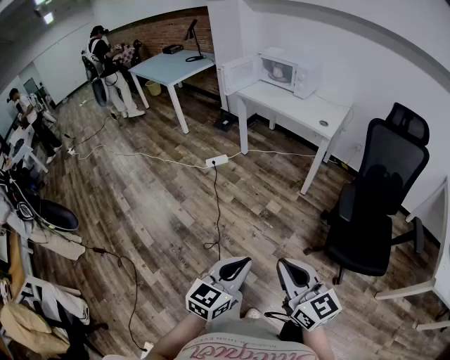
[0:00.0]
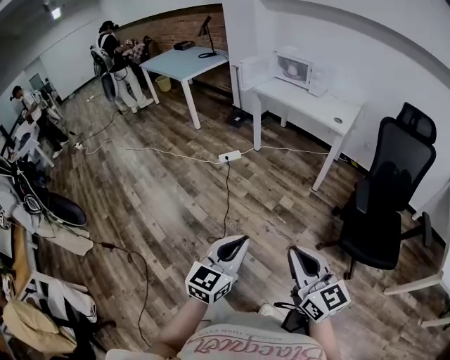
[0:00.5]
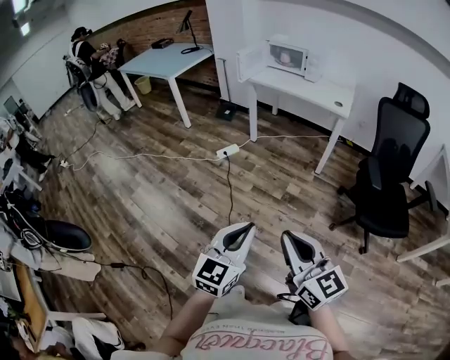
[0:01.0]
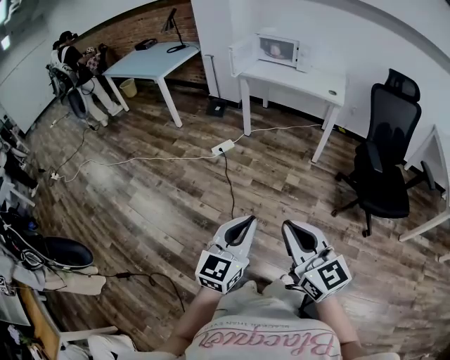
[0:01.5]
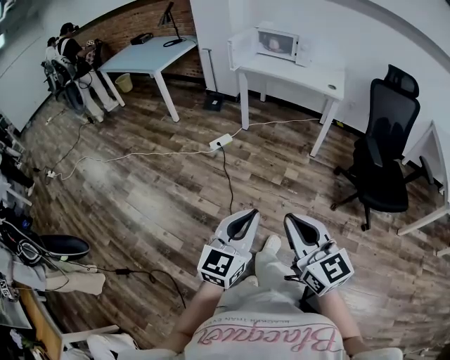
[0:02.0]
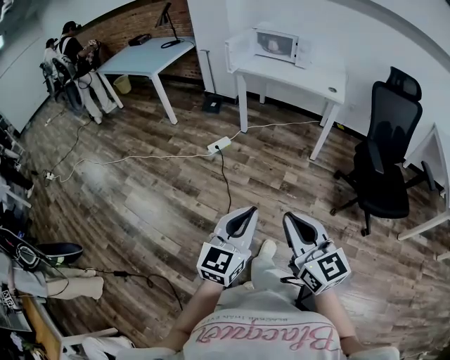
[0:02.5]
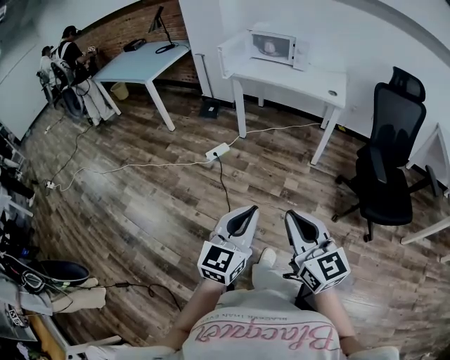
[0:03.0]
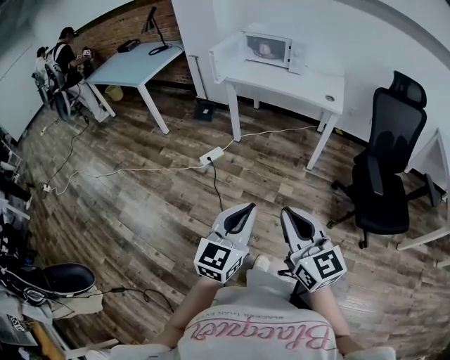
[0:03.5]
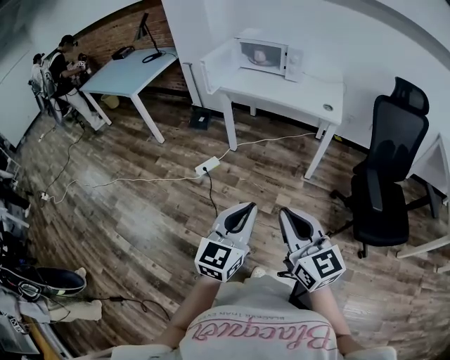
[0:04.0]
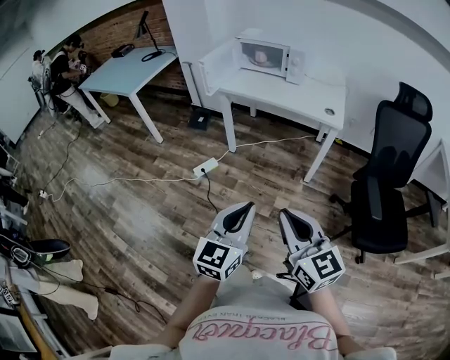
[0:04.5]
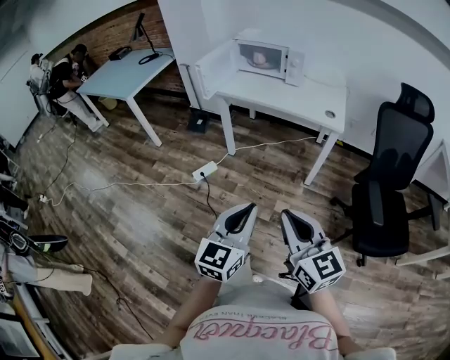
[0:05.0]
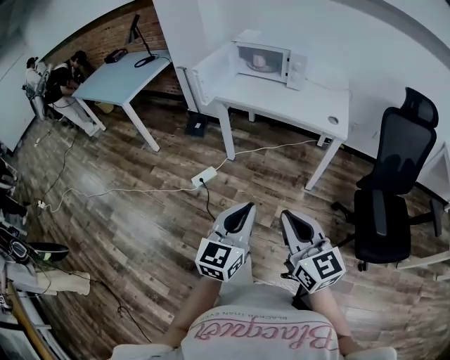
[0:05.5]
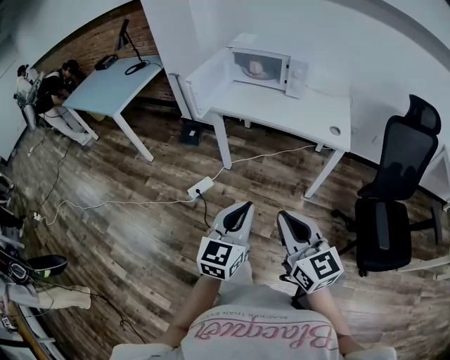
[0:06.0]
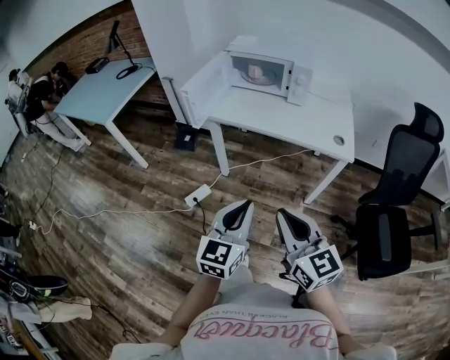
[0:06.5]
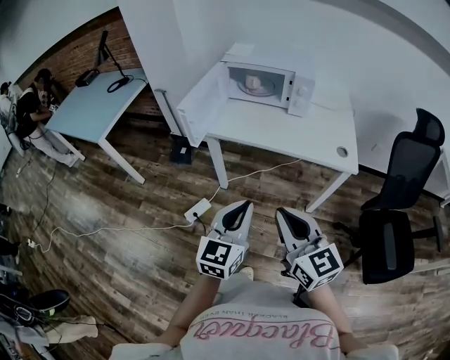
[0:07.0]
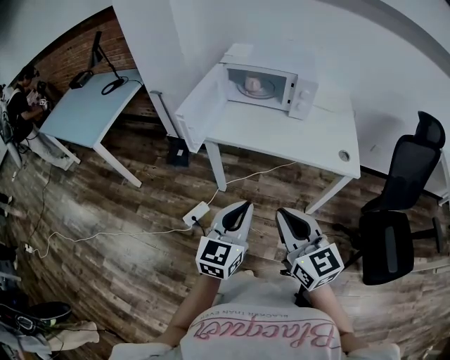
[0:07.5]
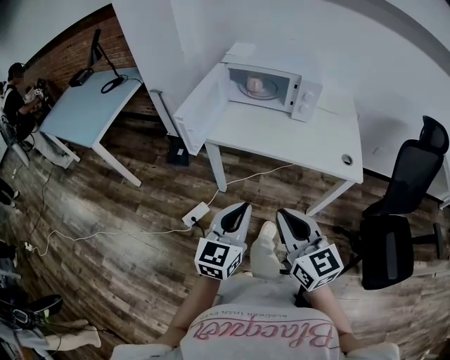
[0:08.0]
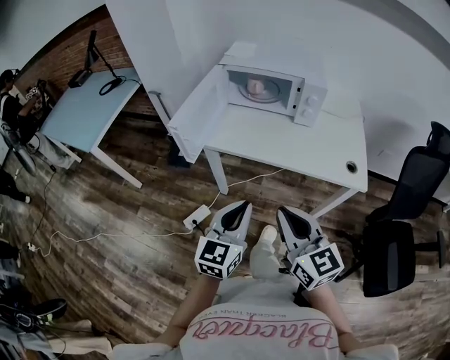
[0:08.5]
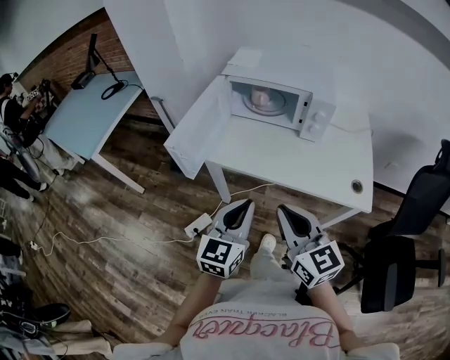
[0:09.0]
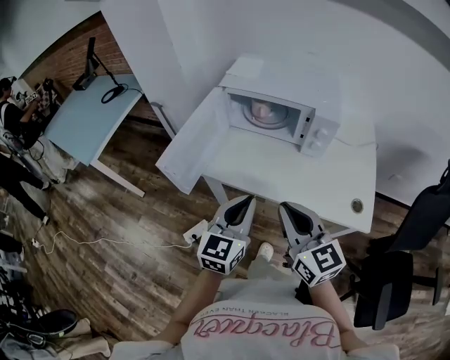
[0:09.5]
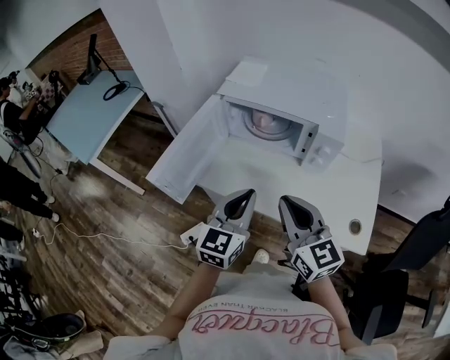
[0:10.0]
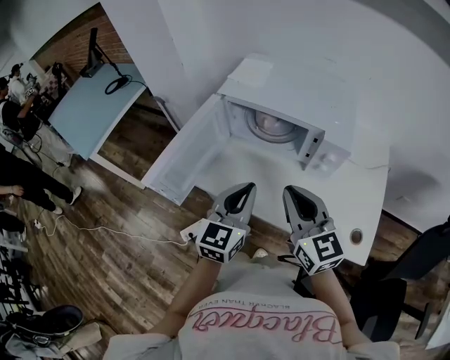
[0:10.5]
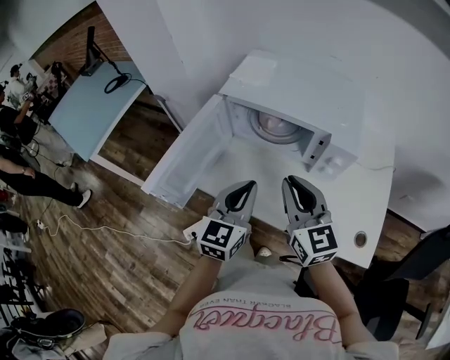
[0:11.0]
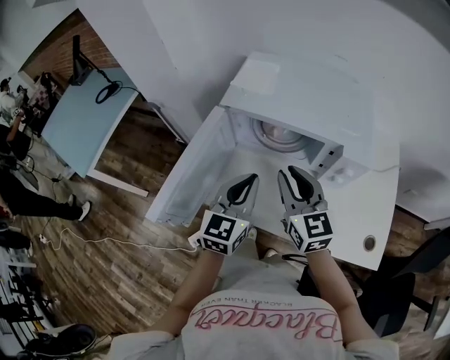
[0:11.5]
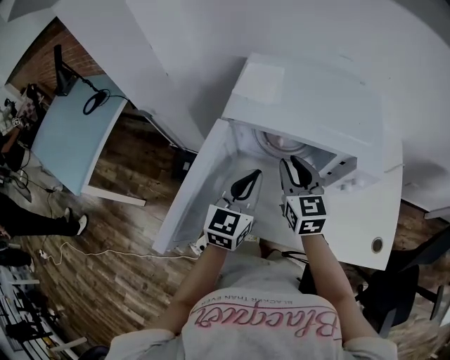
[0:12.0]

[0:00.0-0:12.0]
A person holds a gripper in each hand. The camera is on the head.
0:00.0 to 0:02.0: The two grippers go about 35 cm to the left.
0:02.0 to 0:04.0: The two grippers go about 30 cm forward.
0:04.0 to 0:06.0: The grippers both shift forward by some 20 cm.
0:06.0 to 0:08.0: Both grippers move forward, approximately 25 cm.
0:08.0 to 0:10.0: The grippers both shift forward by approximately 30 cm.
0:10.0 to 0:12.0: Both grippers travel together forward, approximately 25 cm. The right gripper changes its angle by some 20 degrees.

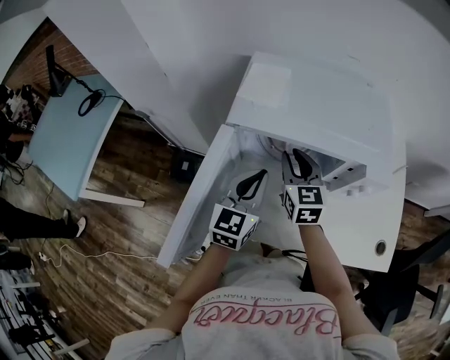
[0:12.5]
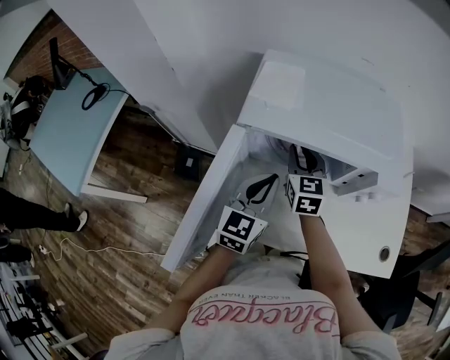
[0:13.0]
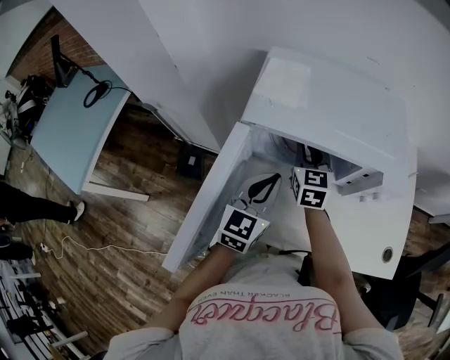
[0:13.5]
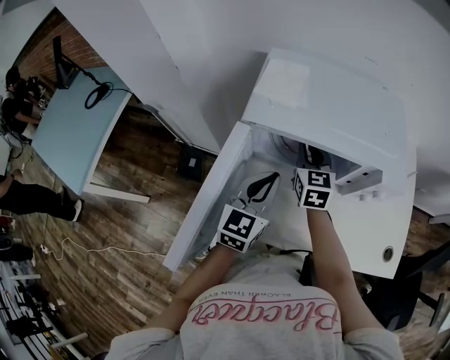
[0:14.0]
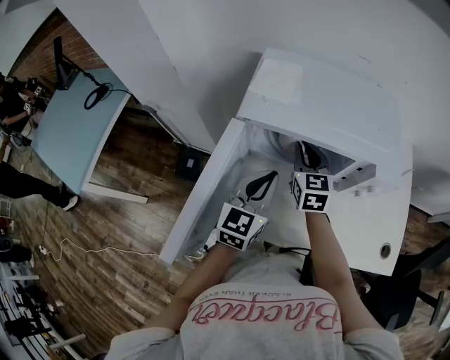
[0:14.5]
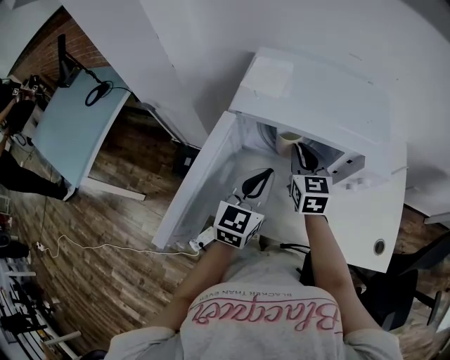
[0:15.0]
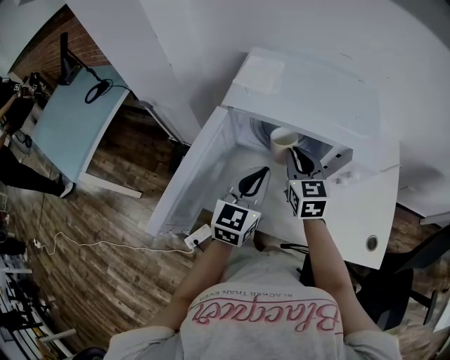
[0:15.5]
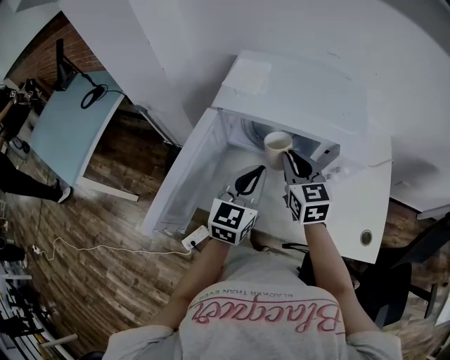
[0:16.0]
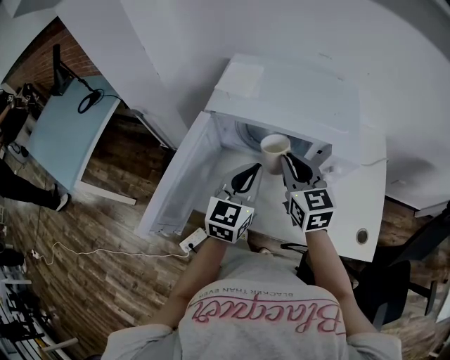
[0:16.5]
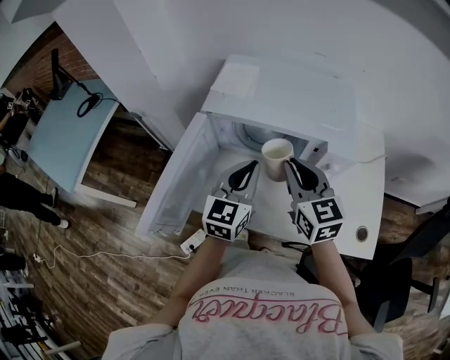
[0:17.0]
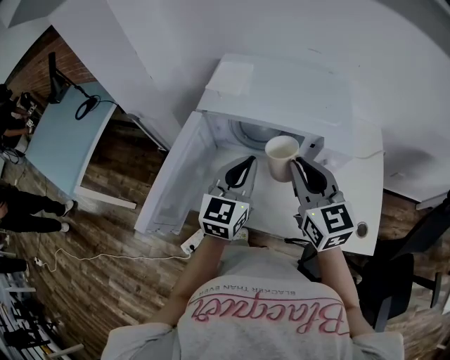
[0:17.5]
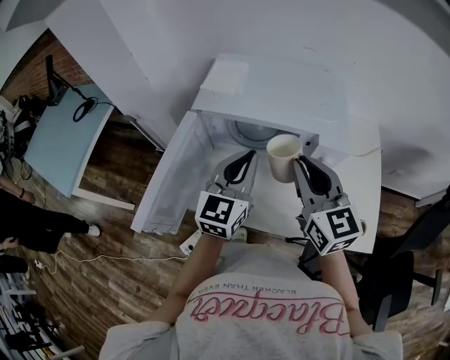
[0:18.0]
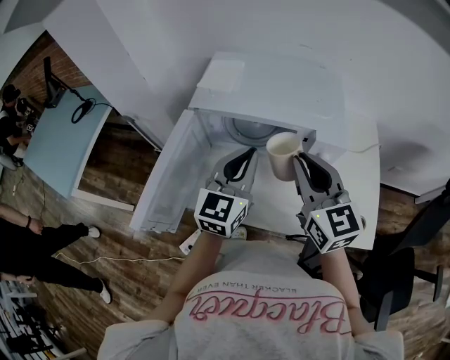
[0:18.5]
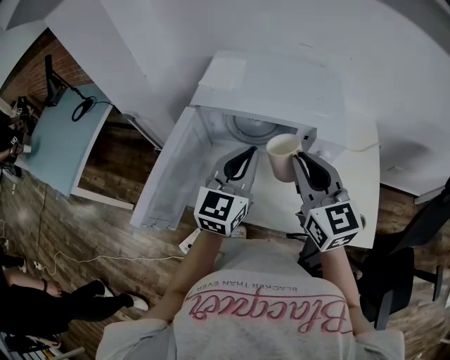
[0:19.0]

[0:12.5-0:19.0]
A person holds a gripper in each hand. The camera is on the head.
0:12.5 to 0:14.5: The grippers make only small movements.
0:14.5 to 0:17.0: The left gripper heads to the right and upward, covering about 10 cm. Meanwhile the right gripper travels backward, upward and to the right by approximately 20 cm.
0:17.0 to 0:19.0: The left gripper changes place by about 5 cm. The right gripper travels upward by roughly 5 cm.

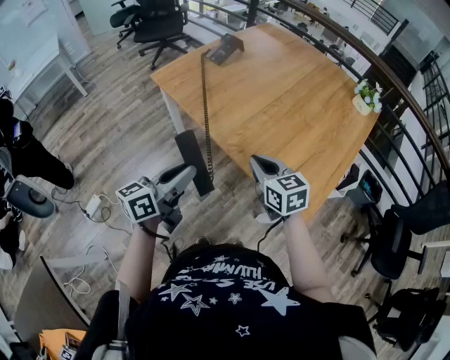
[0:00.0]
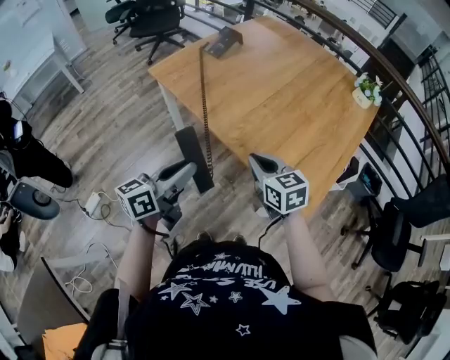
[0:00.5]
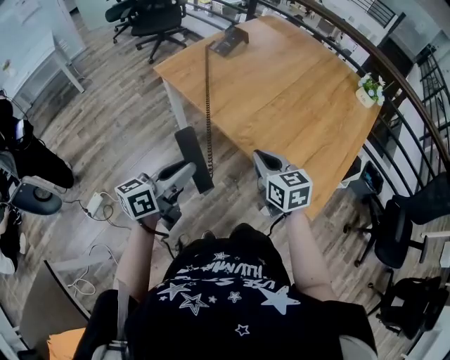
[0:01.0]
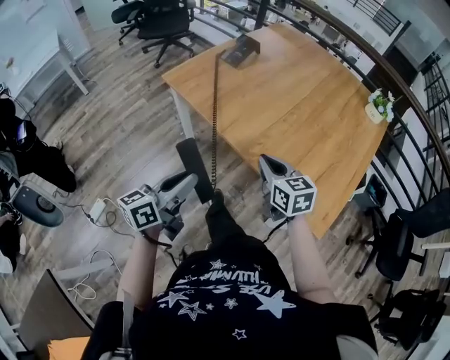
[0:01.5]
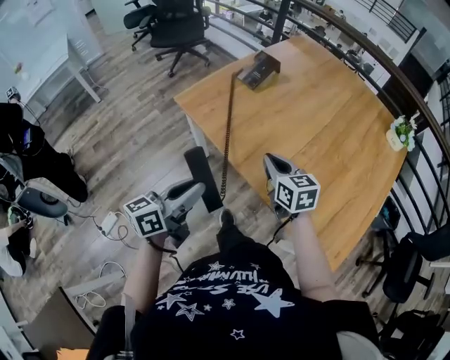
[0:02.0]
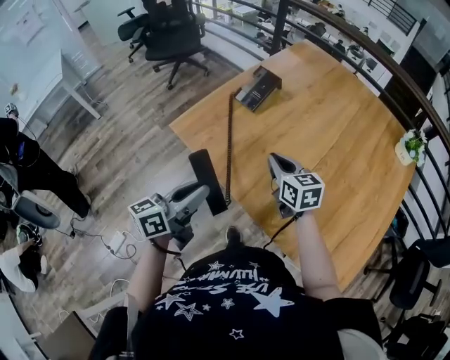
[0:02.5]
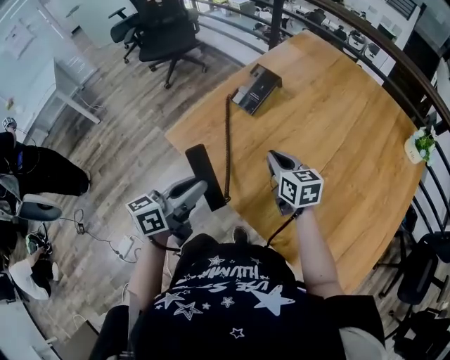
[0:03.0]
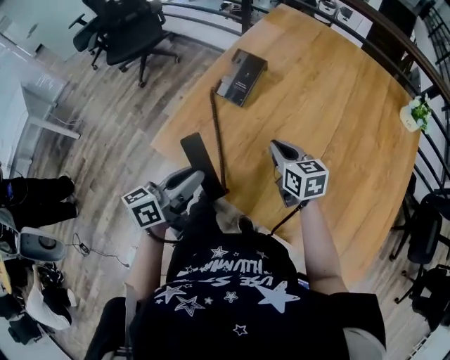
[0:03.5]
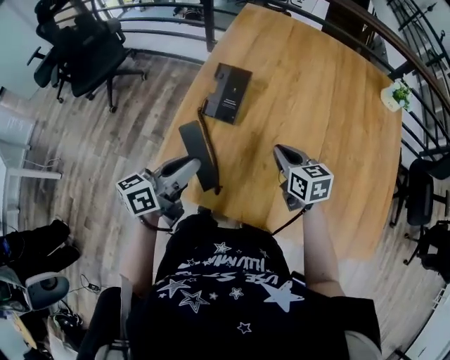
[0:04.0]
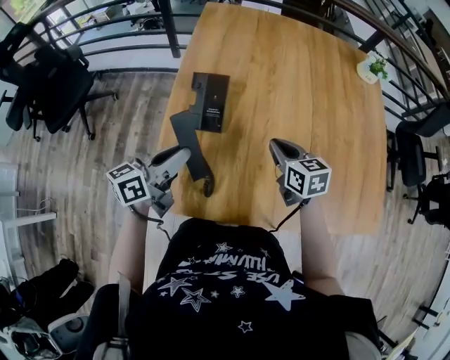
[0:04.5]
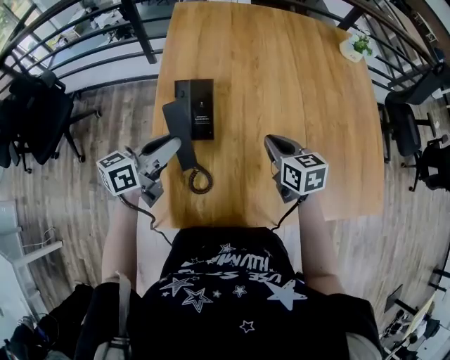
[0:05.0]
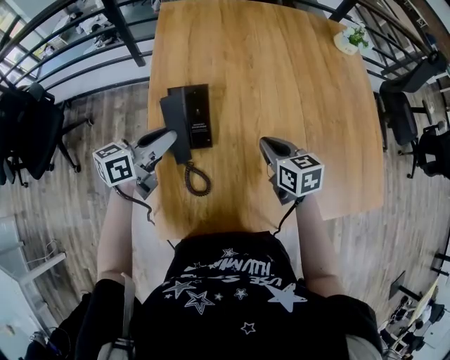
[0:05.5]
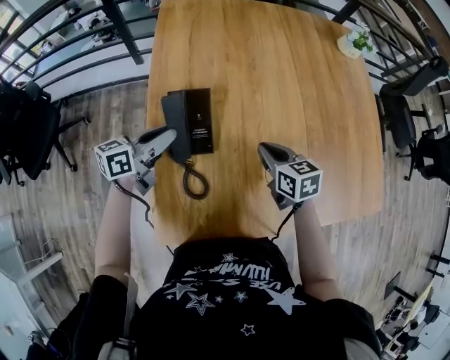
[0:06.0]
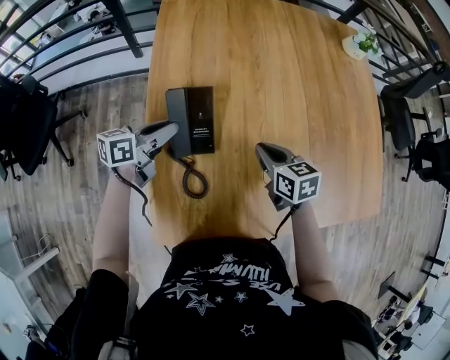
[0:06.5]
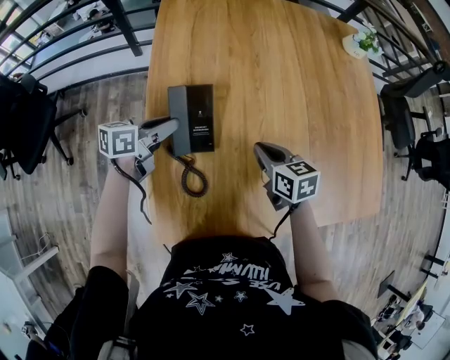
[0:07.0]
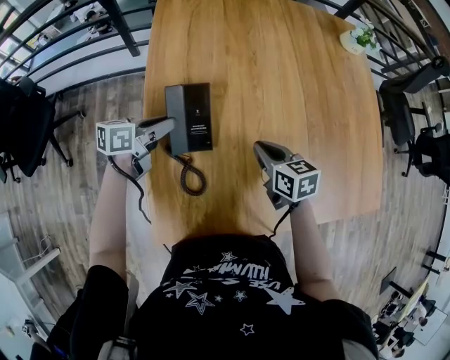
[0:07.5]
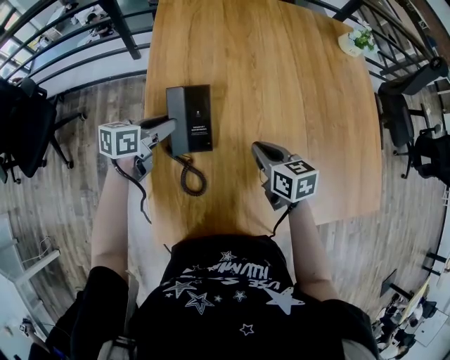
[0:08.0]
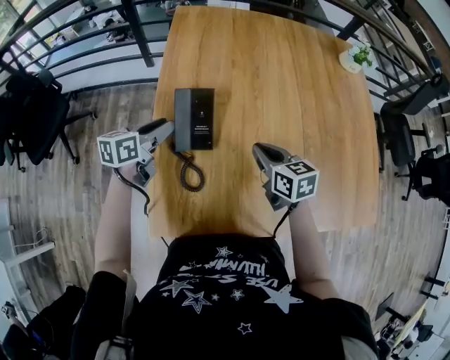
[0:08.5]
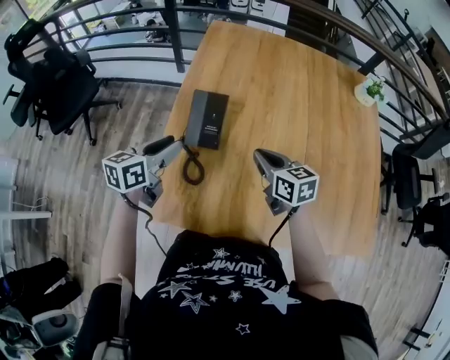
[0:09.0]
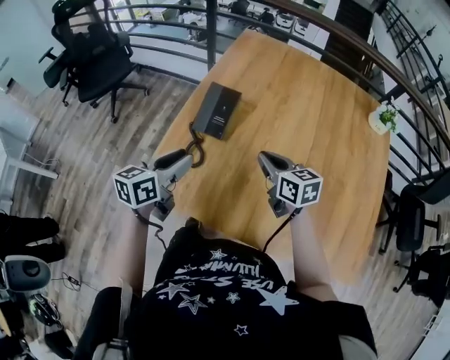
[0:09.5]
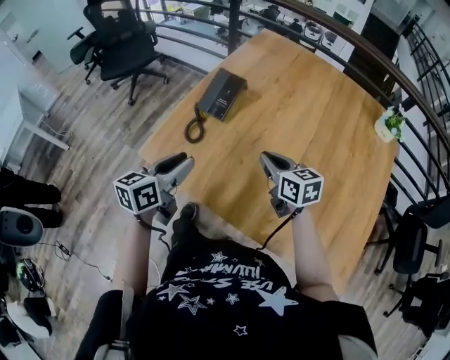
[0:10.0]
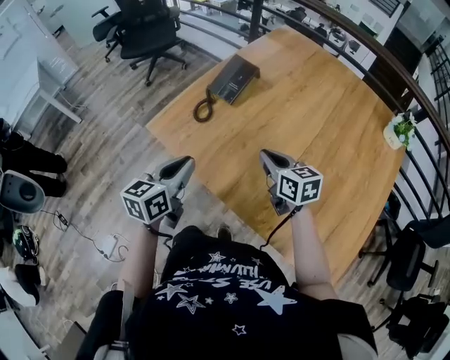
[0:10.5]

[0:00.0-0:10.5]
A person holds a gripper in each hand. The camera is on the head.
0:00.0 to 0:02.0: The two grippers go about 20 cm forward and to the left.
0:02.0 to 0:04.0: The left gripper ends up approximately 35 cm from where it was, and turns by roughly 30 degrees. Meanwhile the right gripper changes place by about 20 cm, and swivels about 30 degrees.
0:04.0 to 0:06.5: The left gripper is displaced forward and downward by about 25 cm, and changes its angle by approximately 30 degrees; the right gripper moves about 5 cm, and turns by about 20 degrees.
0:06.5 to 0:08.5: The grippers move only a little.
0:08.5 to 0:10.5: The right gripper moves approximately 15 cm, and swivels some 40 degrees, while the left gripper shifts by approximately 40 cm, turns by approximately 50 degrees, and closes.
